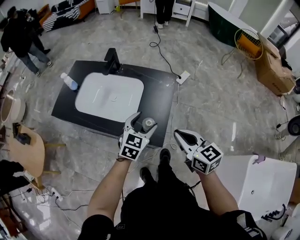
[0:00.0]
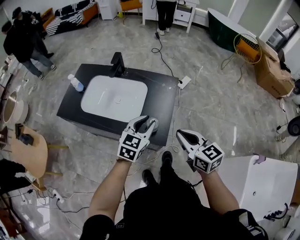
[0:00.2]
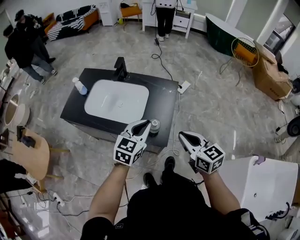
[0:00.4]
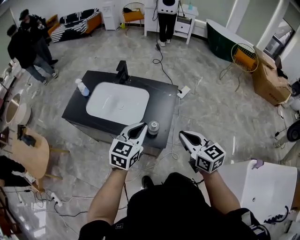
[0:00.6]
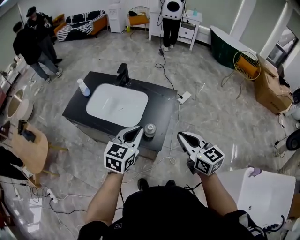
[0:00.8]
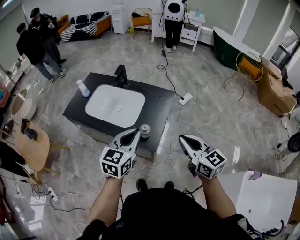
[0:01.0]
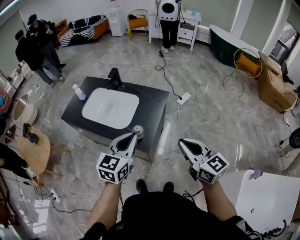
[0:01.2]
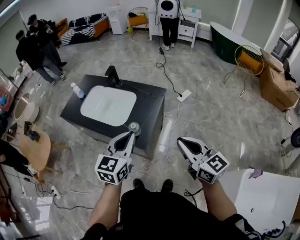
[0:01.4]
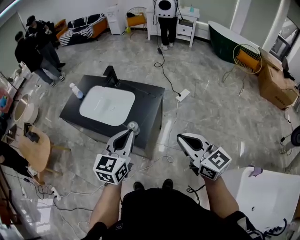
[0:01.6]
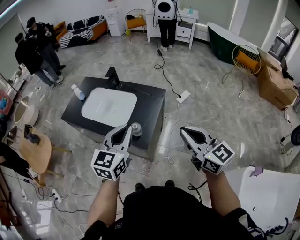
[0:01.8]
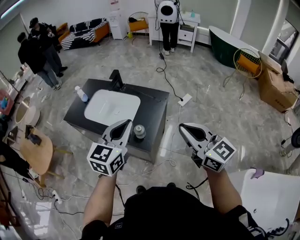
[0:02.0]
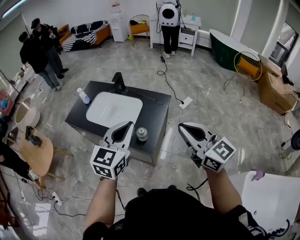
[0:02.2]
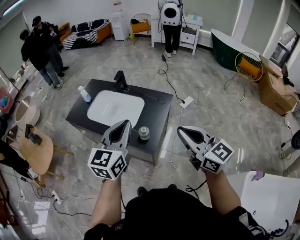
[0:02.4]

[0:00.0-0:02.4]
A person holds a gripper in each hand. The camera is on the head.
0.0 to 1.2 s: The left gripper shifts about 20 cm upward and backward, and closes its fingers. The right gripper travels upward, to the right and backward by some 15 cm.
1.2 to 2.4 s: Both grippers travel together upward, about 10 cm.

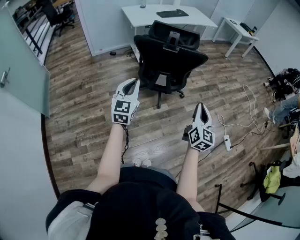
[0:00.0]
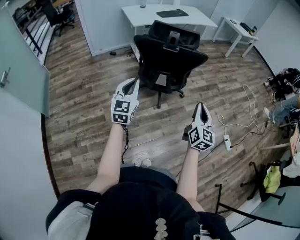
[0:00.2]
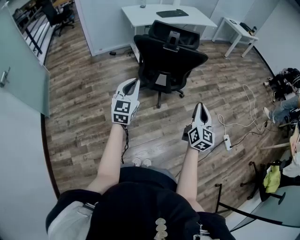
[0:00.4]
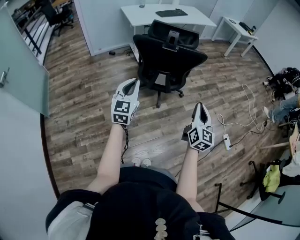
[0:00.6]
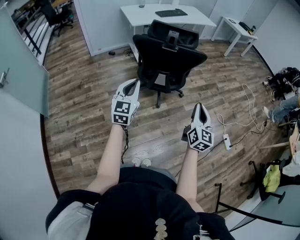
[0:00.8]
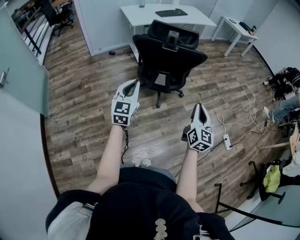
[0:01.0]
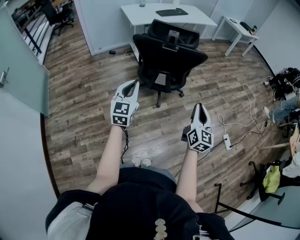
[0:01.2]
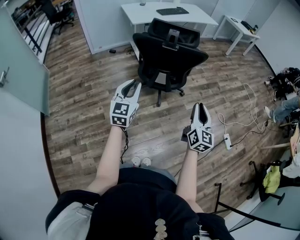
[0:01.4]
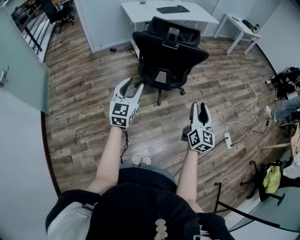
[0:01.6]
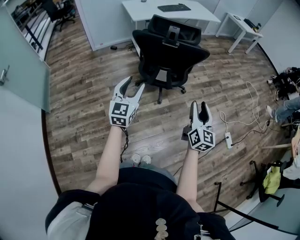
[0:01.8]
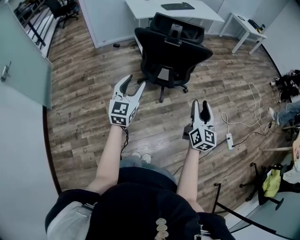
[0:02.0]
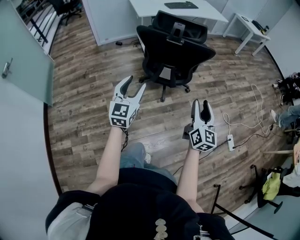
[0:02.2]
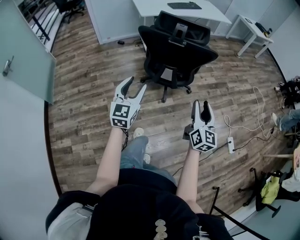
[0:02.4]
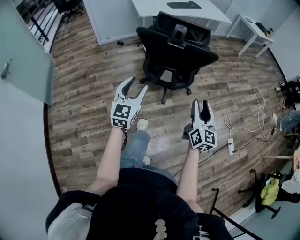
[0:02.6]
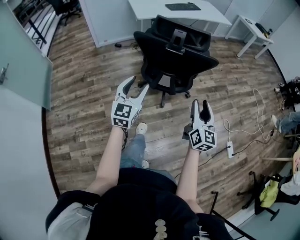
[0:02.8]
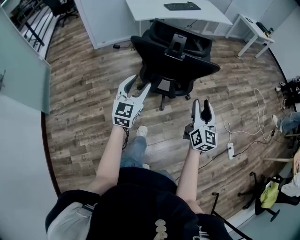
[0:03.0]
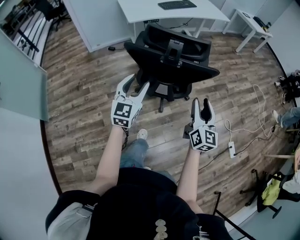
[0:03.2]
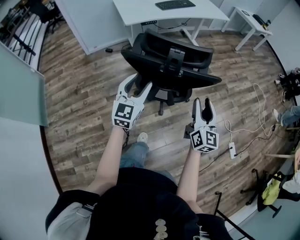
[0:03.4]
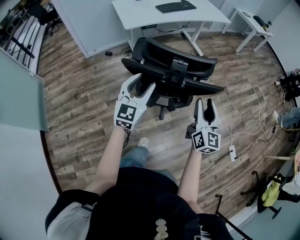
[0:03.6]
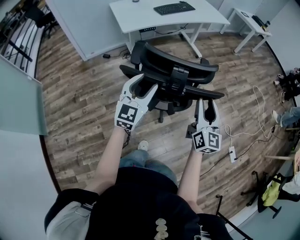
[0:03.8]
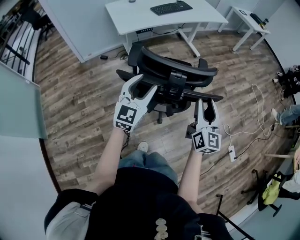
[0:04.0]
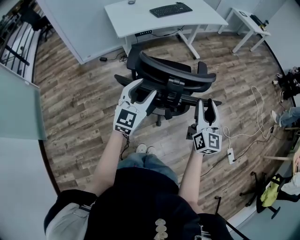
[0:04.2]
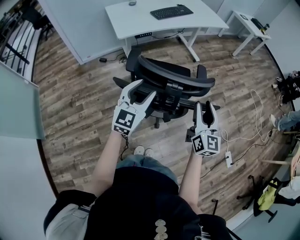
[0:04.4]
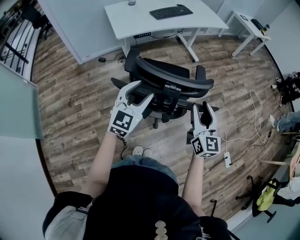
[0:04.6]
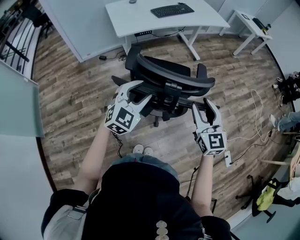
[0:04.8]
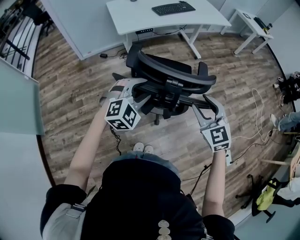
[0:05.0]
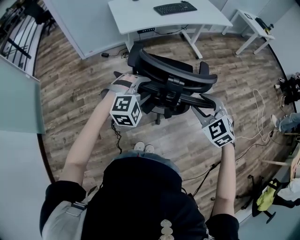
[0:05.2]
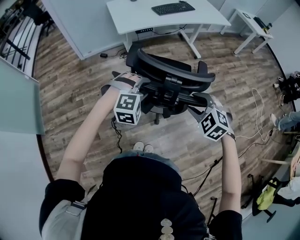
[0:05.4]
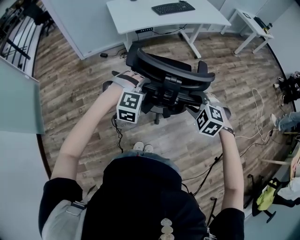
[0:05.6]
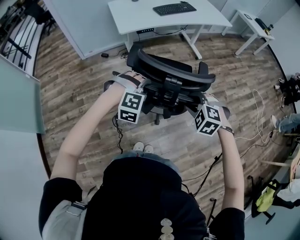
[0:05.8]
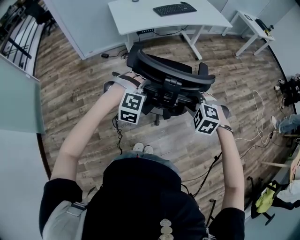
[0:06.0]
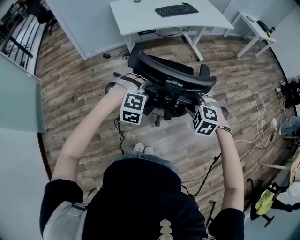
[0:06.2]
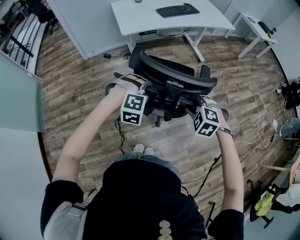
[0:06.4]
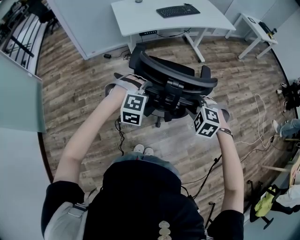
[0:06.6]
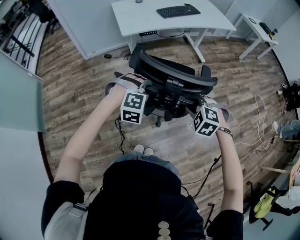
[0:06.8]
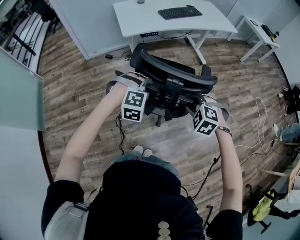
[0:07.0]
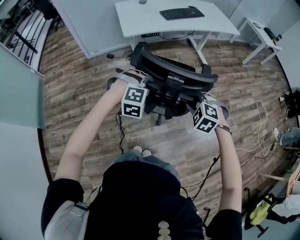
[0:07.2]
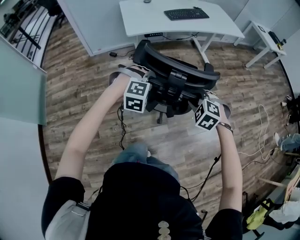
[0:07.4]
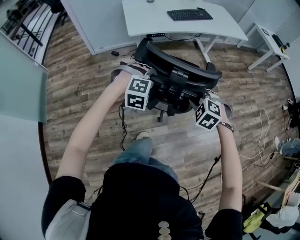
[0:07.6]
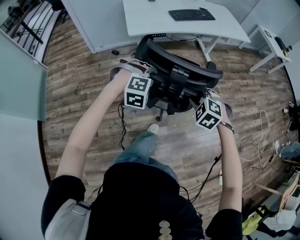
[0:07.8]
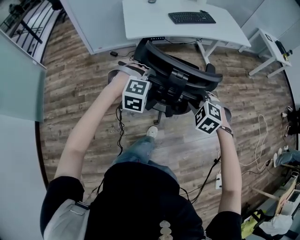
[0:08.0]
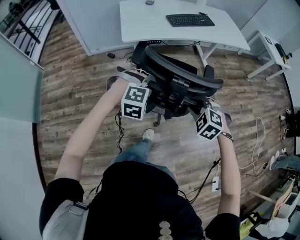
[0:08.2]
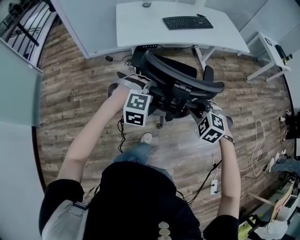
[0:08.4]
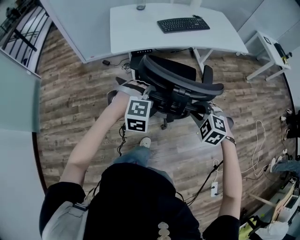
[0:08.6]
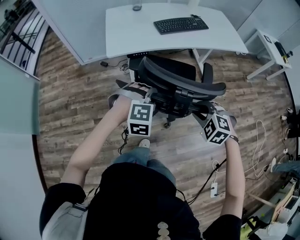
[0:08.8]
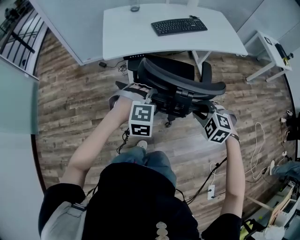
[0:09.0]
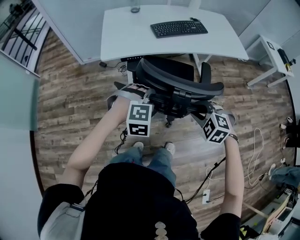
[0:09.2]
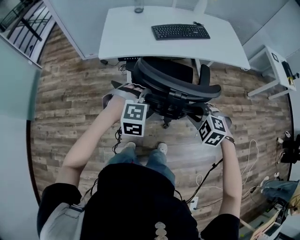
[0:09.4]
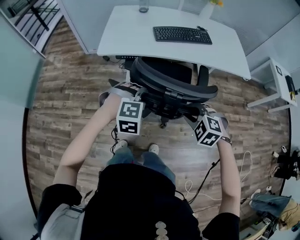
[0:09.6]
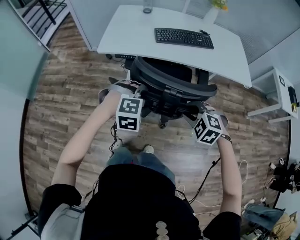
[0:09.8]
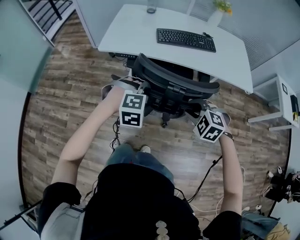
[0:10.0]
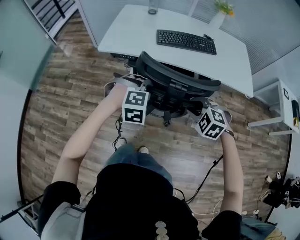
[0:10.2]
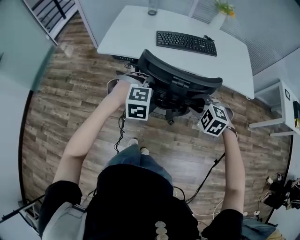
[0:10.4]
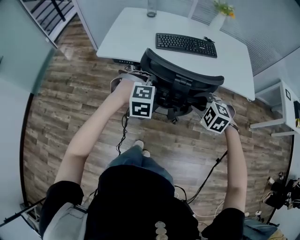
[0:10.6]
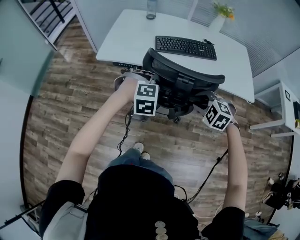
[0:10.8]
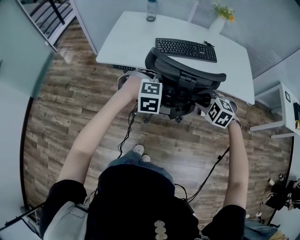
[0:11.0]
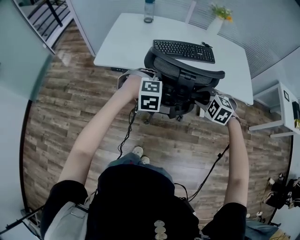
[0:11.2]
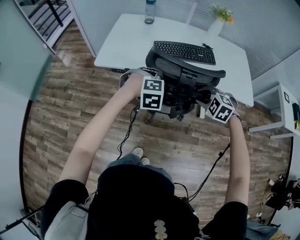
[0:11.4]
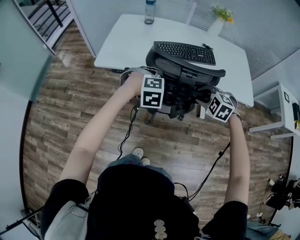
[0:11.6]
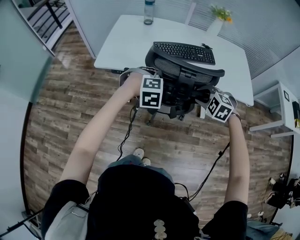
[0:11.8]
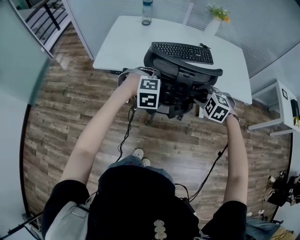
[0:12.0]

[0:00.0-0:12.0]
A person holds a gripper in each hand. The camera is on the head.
0.0 to 1.6 s: The left gripper opens, while the right gripper opens its fingers.
1.6 to 3.0 s: The grippers both shift forward by some 15 cm.
3.0 to 4.4 s: Both grippers move forward, about 25 cm.
4.4 to 6.0 s: The right gripper is displaced downward and to the left by about 10 cm, and tips its fingers downward by about 60 degrees. The left gripper is displaced downward by about 10 cm, and angles its fingers downward, by approximately 50 degrees.
6.0 to 7.6 s: The grippers both shift forward by about 15 cm.
7.6 to 9.0 s: Both grippers travel together forward and to the right, some 20 cm.
9.0 to 10.4 s: Both grippers move to the right and forward, about 25 cm. The left gripper changes its angle by some 20 degrees; the right gripper changes its angle by about 20 degrees.
10.4 to 12.0 s: The grippers both shift forward by some 10 cm.

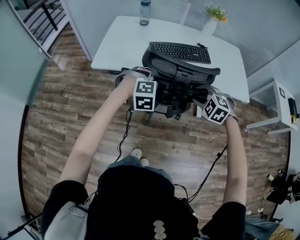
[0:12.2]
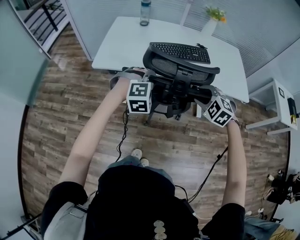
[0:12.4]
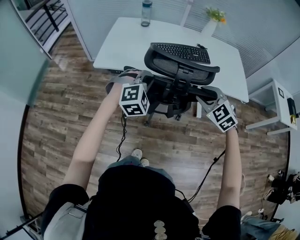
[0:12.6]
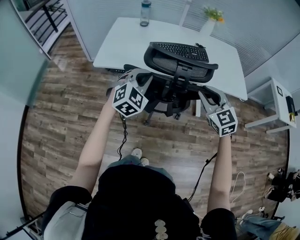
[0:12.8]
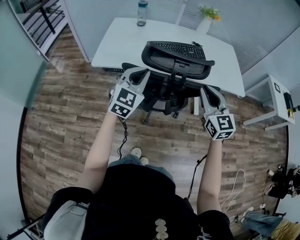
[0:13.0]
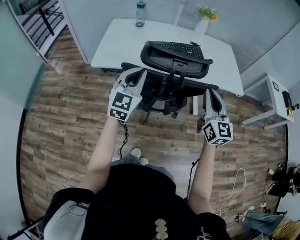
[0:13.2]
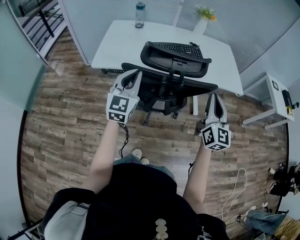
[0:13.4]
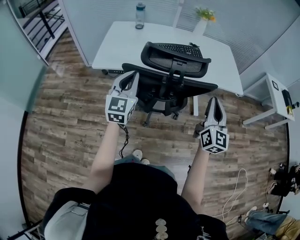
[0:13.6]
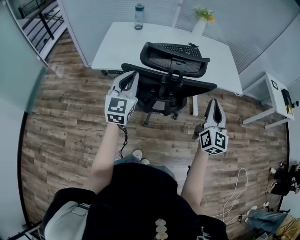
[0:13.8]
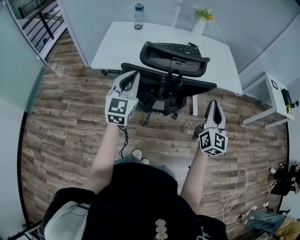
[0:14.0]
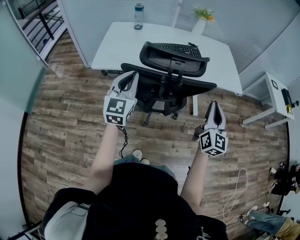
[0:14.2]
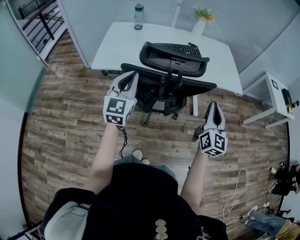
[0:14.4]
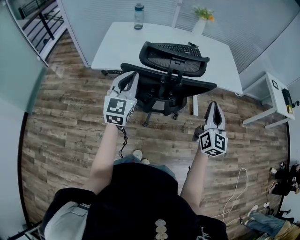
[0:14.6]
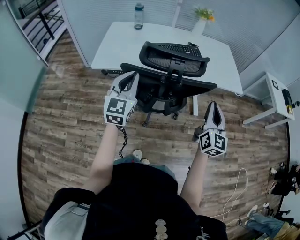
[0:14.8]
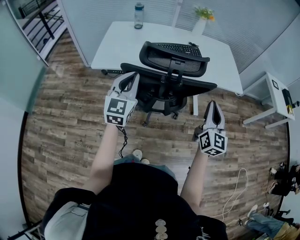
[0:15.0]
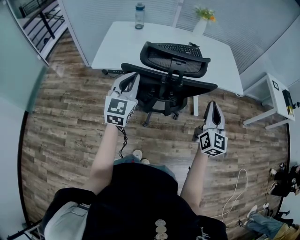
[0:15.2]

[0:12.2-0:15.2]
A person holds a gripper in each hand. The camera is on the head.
12.2 to 13.8 s: The left gripper shifts approximately 15 cm upward, to the left and backward, points its fingers approximately 50 degrees further upward, and closes its fingers, while the right gripper travels upward, backward and to the right by roughly 20 cm, tilts its fingers approximately 60 degrees upward, and closes its fingers.
13.8 to 15.2 s: The grippers stay close to where they were, moving slightly.

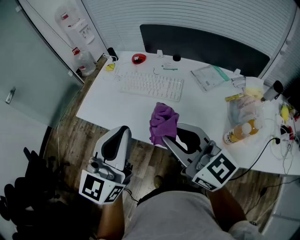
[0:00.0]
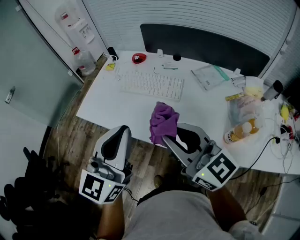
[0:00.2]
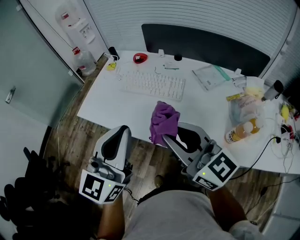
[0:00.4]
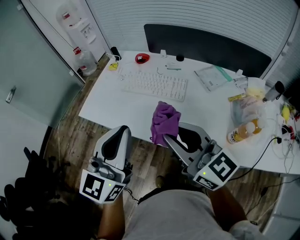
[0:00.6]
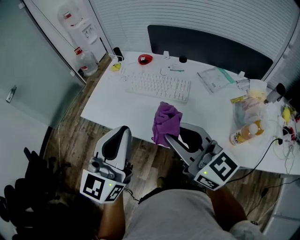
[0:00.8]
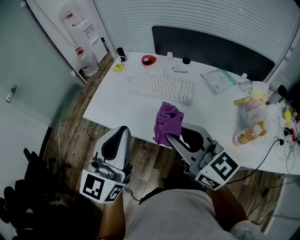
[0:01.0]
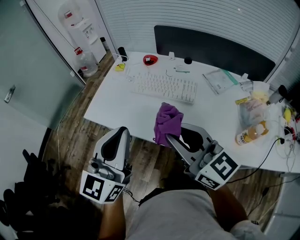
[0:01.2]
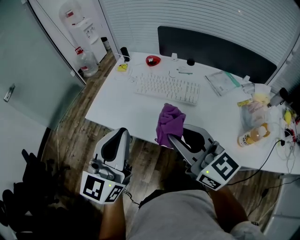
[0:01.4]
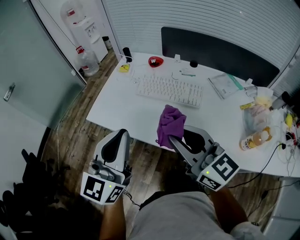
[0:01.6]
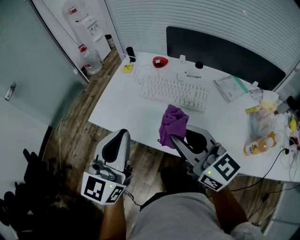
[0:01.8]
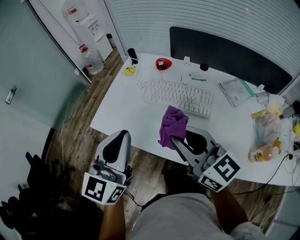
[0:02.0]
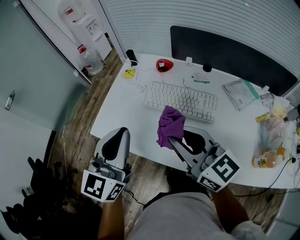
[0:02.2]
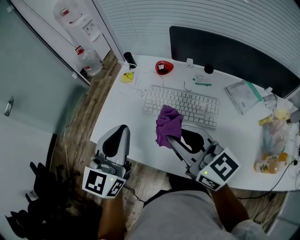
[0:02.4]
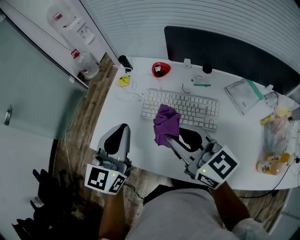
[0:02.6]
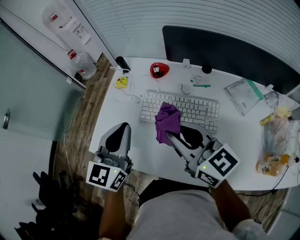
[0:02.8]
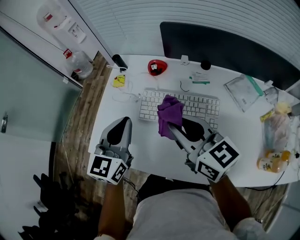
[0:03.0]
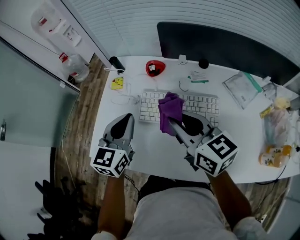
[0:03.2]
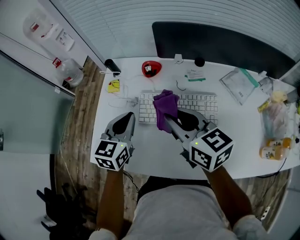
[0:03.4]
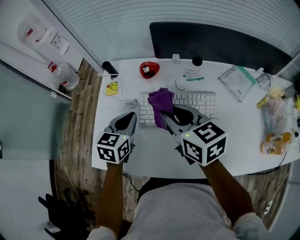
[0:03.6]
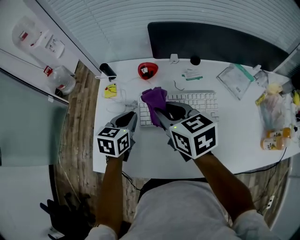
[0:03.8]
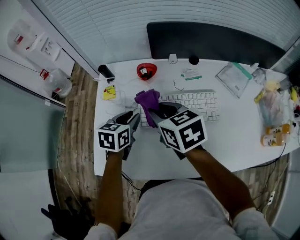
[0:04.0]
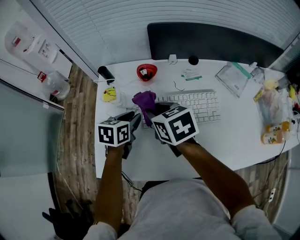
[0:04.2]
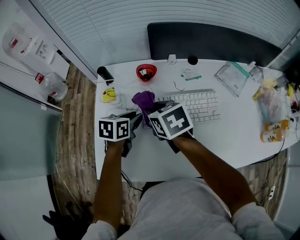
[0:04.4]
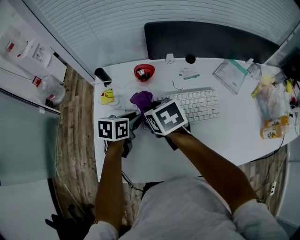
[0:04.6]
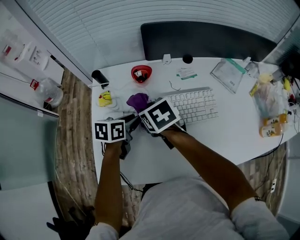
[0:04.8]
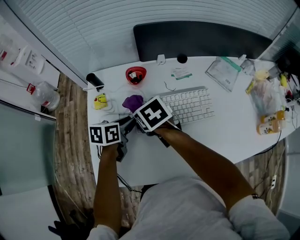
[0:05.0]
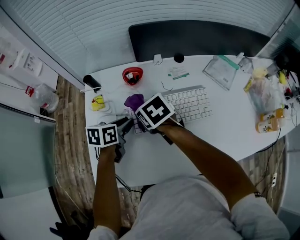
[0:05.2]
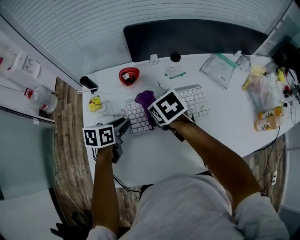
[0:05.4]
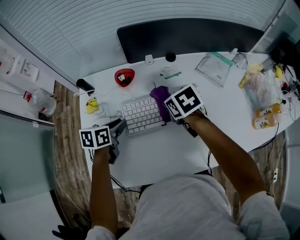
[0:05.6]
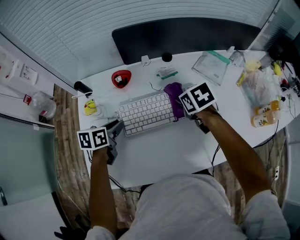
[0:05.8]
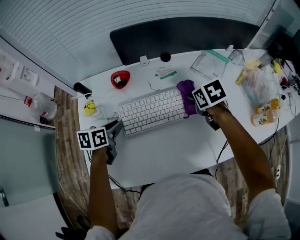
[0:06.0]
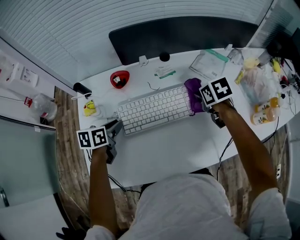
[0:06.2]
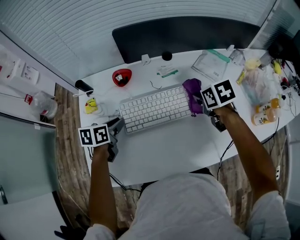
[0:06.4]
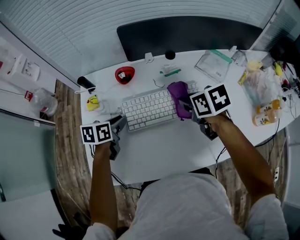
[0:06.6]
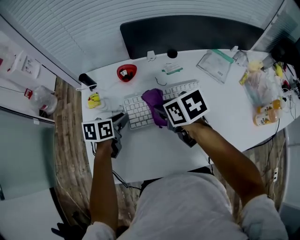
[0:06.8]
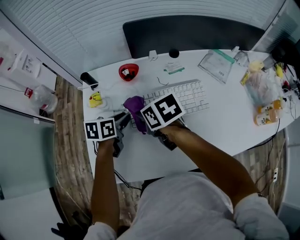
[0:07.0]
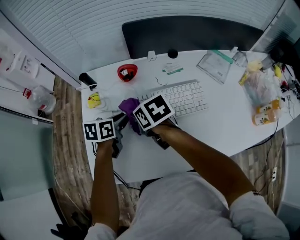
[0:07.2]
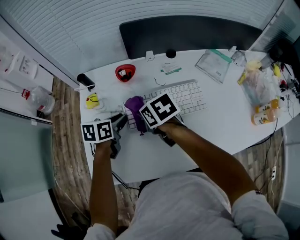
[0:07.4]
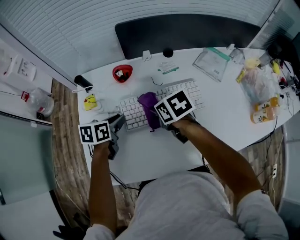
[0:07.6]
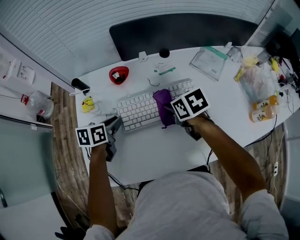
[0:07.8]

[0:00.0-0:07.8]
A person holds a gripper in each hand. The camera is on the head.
0.0 to 1.6 s: The two grippers go roughly 10 cm to the left and forward.
1.6 to 3.2 s: The left gripper heads forward and downward, covering roughly 30 cm, and turns by some 20 degrees, while the right gripper travels forward by some 25 cm, and rotates roughly 20 degrees.
3.2 to 4.6 s: The right gripper goes about 20 cm downward, to the left and forward, and points its fingers roughly 40 degrees further downward, while the left gripper goes approximately 15 cm downward and forward, swivels approximately 50 degrees, and opens.
4.6 to 6.2 s: The right gripper is displaced to the right by roughly 30 cm, and rotates approximately 20 degrees.
6.2 to 7.8 s: The right gripper goes approximately 15 cm to the left.
